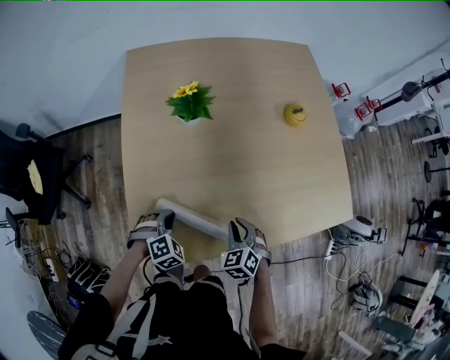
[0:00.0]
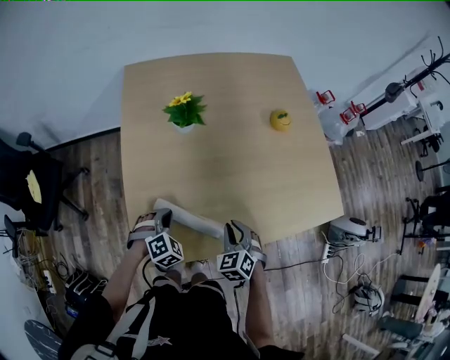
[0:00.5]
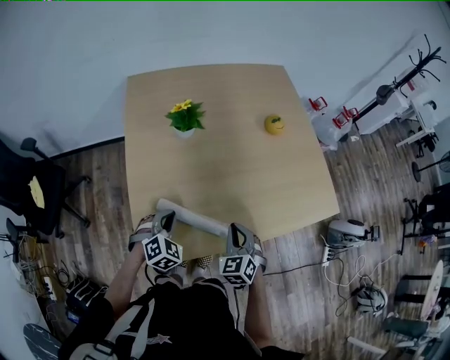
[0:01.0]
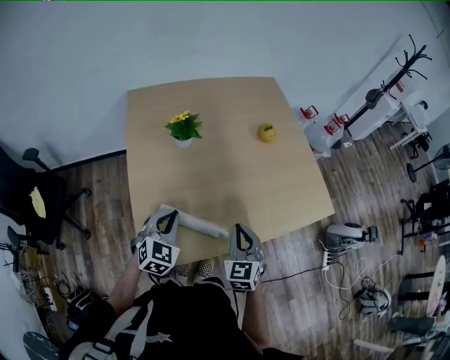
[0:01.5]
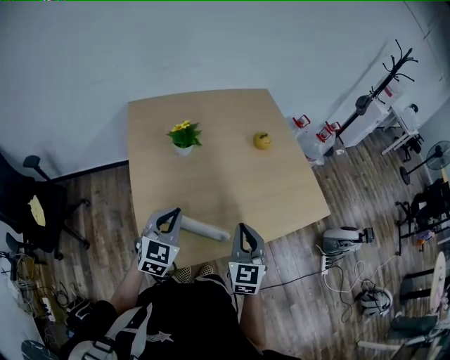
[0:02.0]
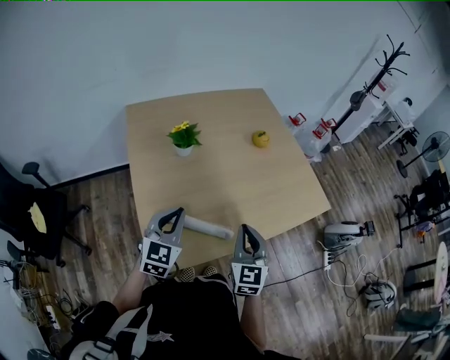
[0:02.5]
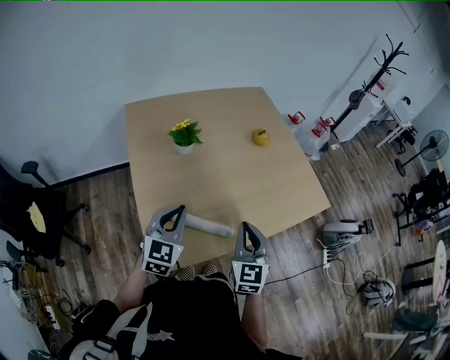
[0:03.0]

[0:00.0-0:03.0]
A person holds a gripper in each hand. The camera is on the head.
0:00.0 to 0:01.5: The right gripper is displaced upward by approximately 15 cm, and rotates some 30 degrees.
0:01.5 to 0:03.0: The right gripper shifts approximately 10 cm upward.

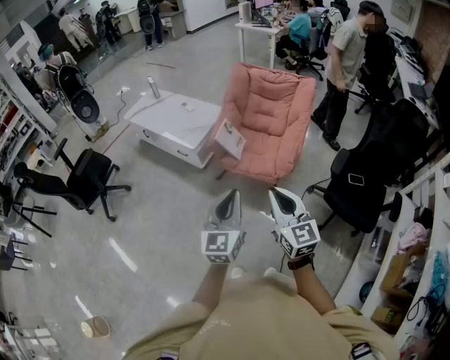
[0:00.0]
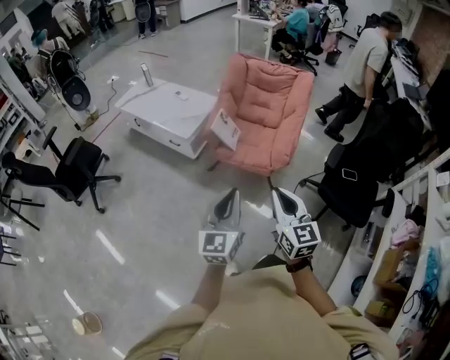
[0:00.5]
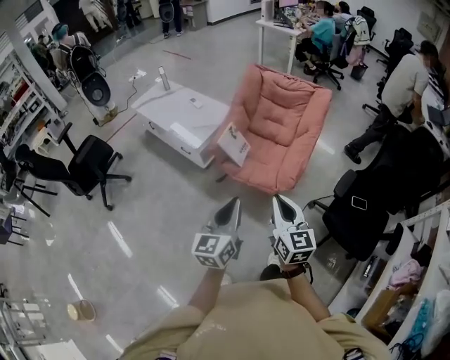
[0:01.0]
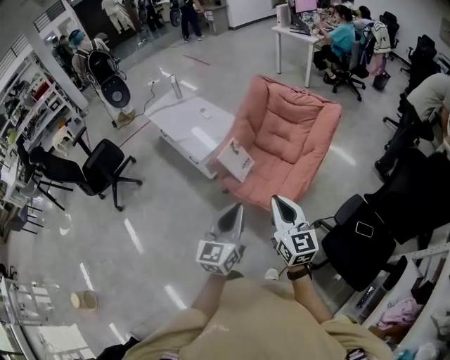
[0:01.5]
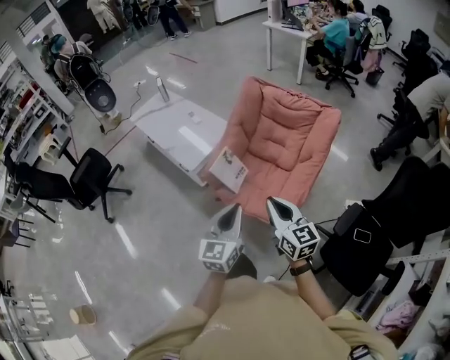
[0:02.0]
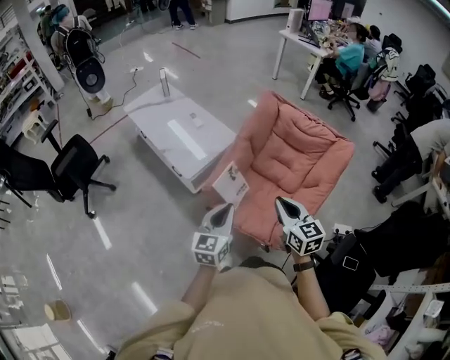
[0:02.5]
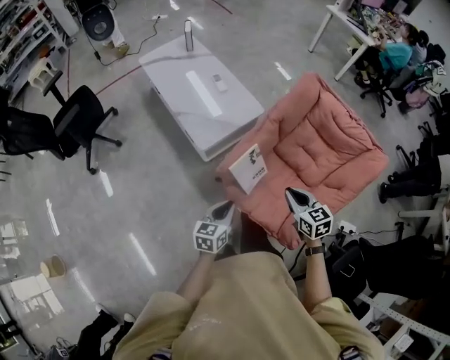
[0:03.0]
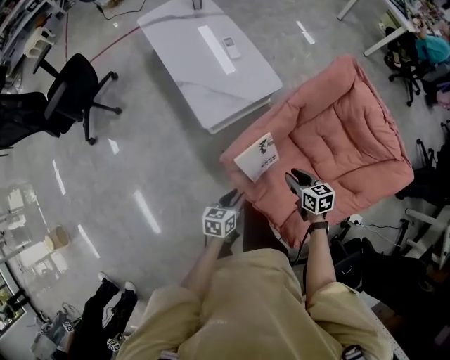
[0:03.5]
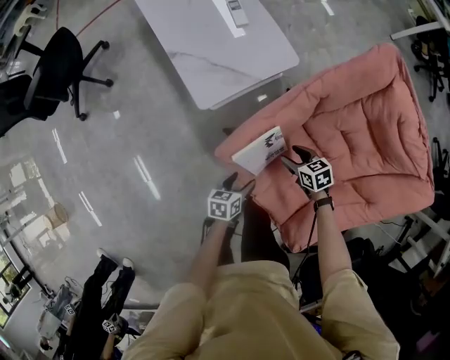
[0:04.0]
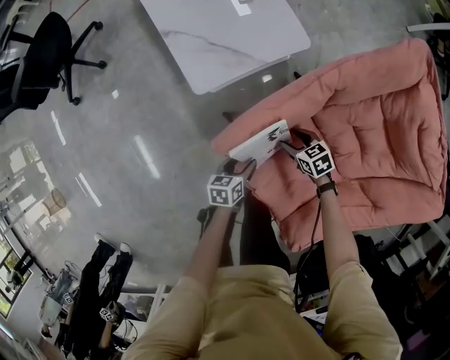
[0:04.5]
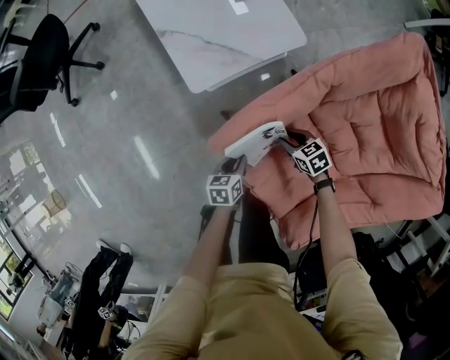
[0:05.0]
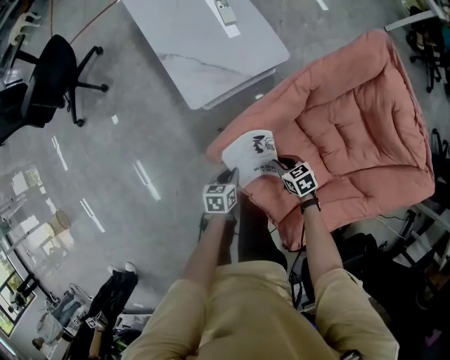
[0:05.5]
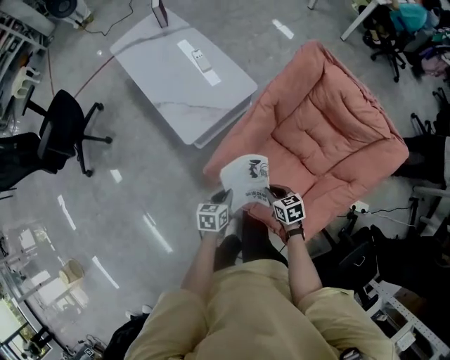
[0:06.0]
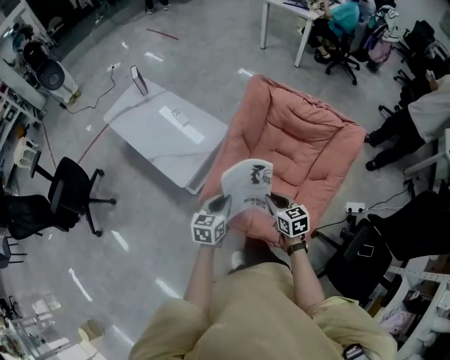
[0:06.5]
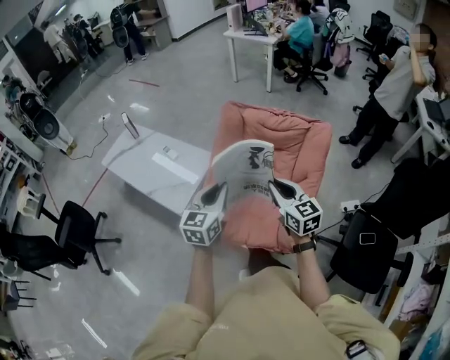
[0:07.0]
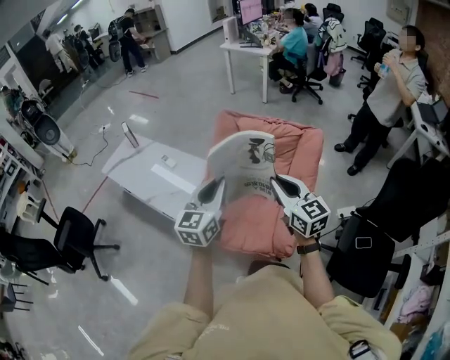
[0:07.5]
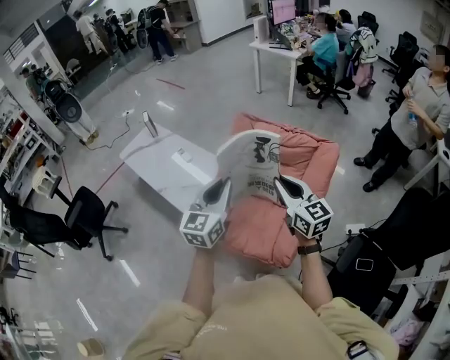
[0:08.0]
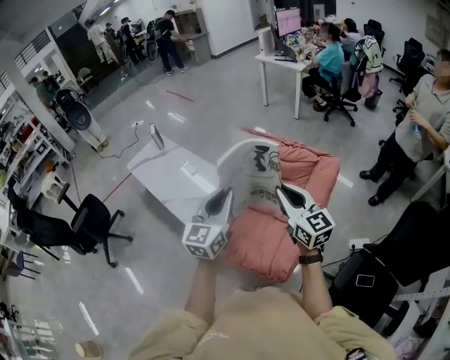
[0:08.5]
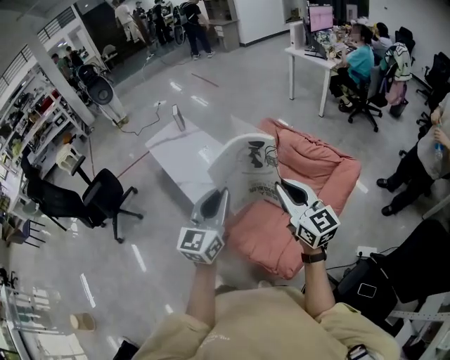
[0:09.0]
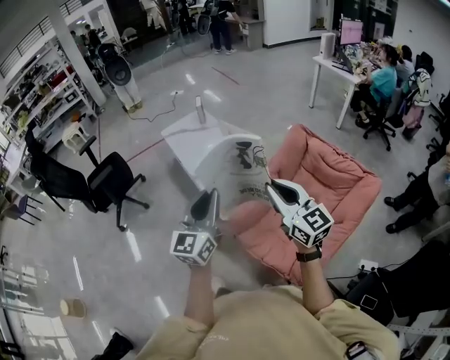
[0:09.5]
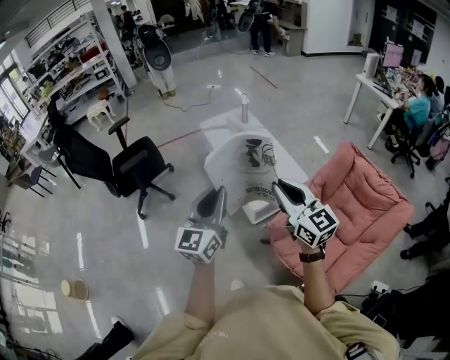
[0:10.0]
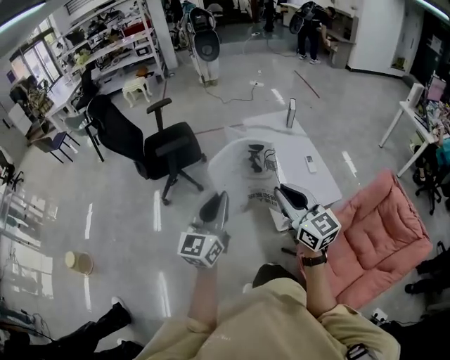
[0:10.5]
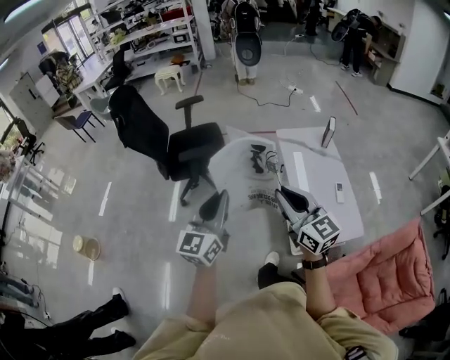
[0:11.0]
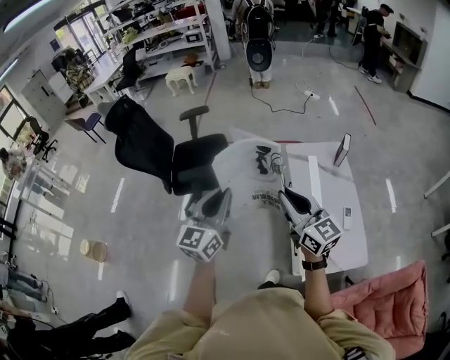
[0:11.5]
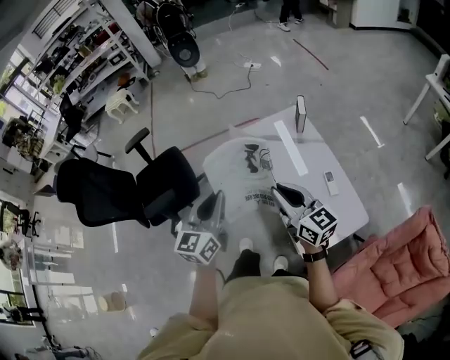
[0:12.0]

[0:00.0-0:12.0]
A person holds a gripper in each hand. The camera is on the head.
0:00.0 to 0:02.0: The two grippers go approximately 35 cm forward and to the right. The right gripper turns by about 20 degrees.
0:02.0 to 0:04.0: The two grippers go roughly 60 cm downward and forward. The right gripper points its fingers approximately 40 degrees further downward, and opens its fingers. The left gripper angles its fingers downward, by some 40 degrees, and opens.
0:04.0 to 0:06.0: The left gripper is displaced upward by about 10 cm, and closes up, while the right gripper travels backward and upward by about 15 cm, and closes its fingers.
0:06.0 to 0:08.0: Both grippers travel together upward, some 50 cm. The left gripper tips its fingers upward by some 40 degrees. The right gripper tilts its fingers some 50 degrees upward.
0:08.0 to 0:10.0: The pair of grippers is taken some 40 cm. The left gripper changes its angle by approximately 30 degrees, while the right gripper rotates approximately 30 degrees.
0:10.0 to 0:12.0: The two grippers travel together, forward, about 60 cm.

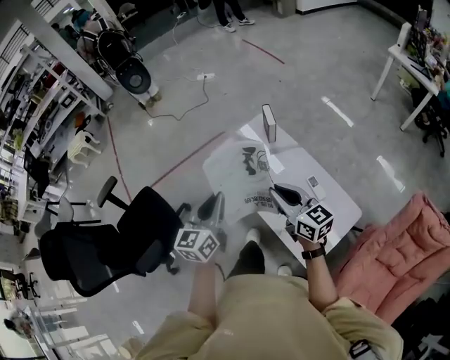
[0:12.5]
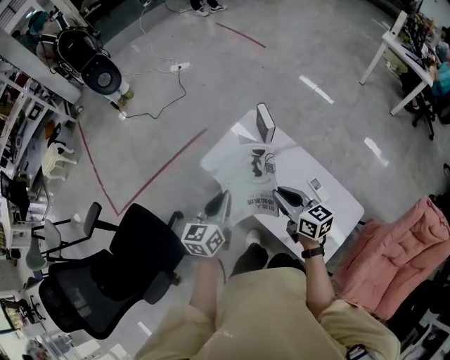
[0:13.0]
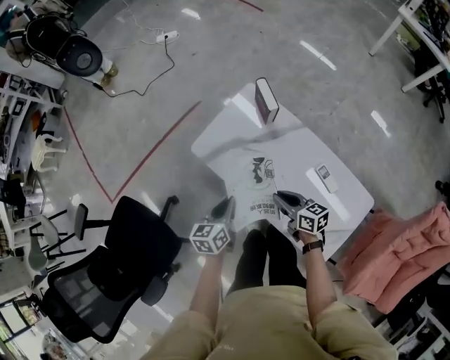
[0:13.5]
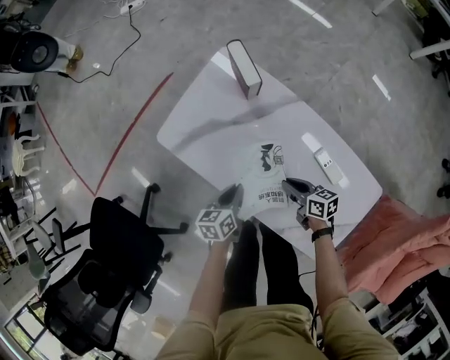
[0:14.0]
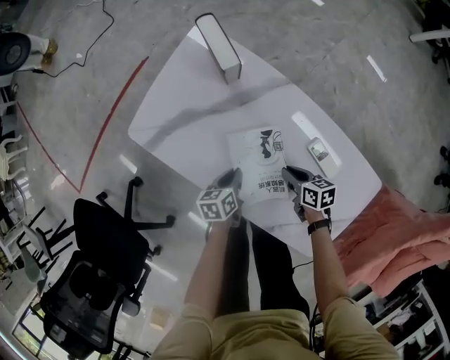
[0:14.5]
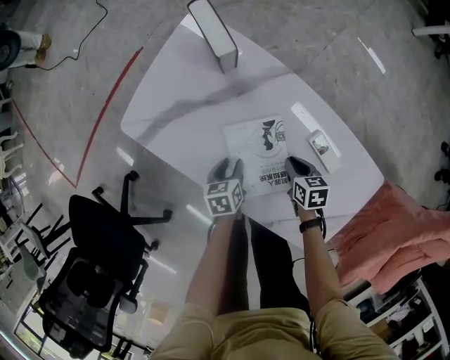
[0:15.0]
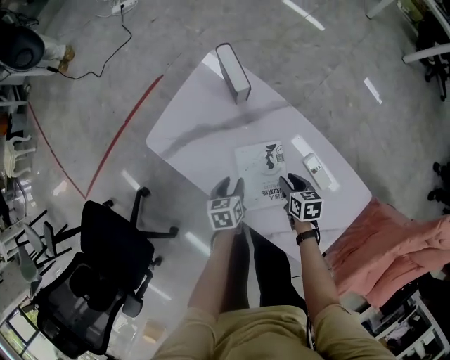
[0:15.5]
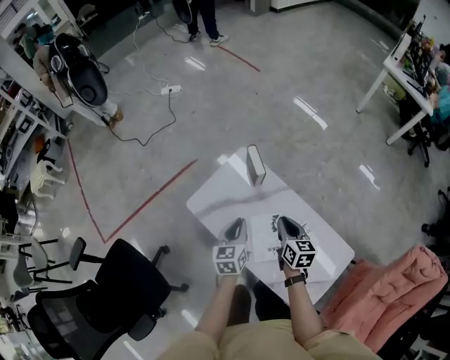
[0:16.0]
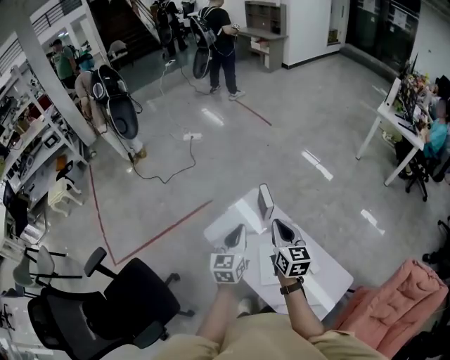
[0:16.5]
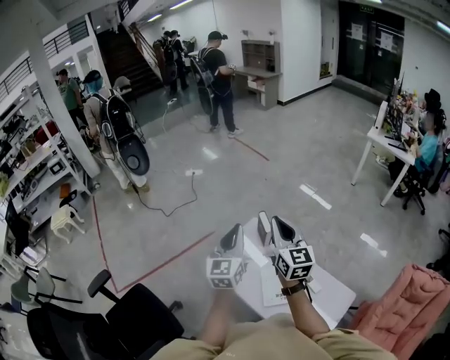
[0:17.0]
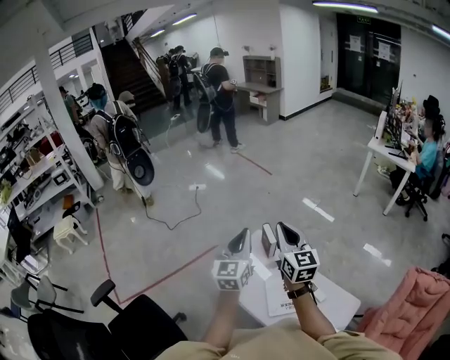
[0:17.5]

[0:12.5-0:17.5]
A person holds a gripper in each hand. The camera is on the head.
0:12.5 to 0:15.0: The two grippers go approximately 60 cm downward. The left gripper tilts its fingers approximately 50 degrees downward, and opens up. Meanwhile the right gripper angles its fingers downward, by about 50 degrees.
0:15.0 to 0:17.5: Both grippers move upward, roughly 80 cm. The right gripper tilts its fingers some 60 degrees upward, and opens and closes again. Meanwhile the left gripper points its fingers roughly 60 degrees further upward, and closes its fingers.

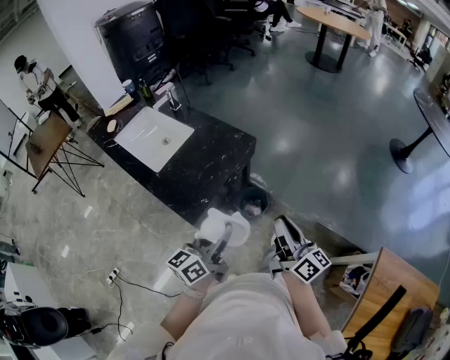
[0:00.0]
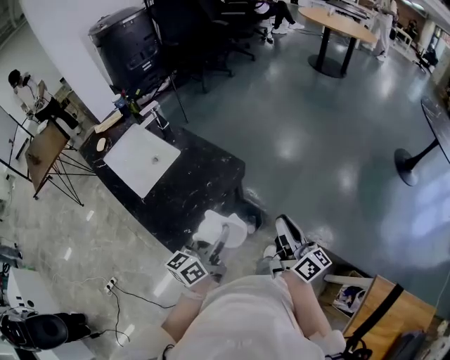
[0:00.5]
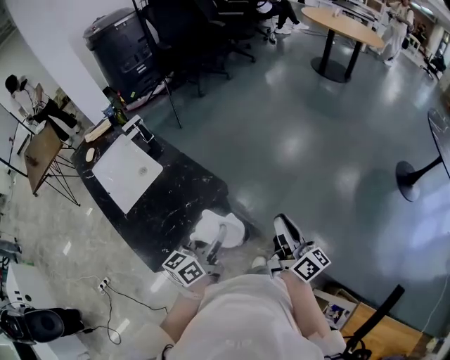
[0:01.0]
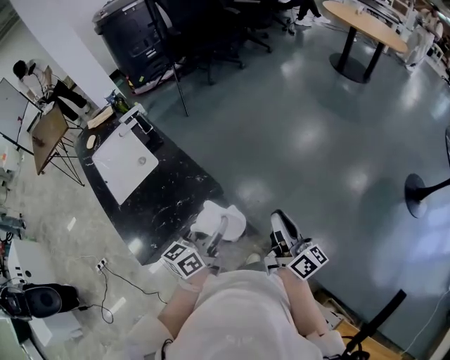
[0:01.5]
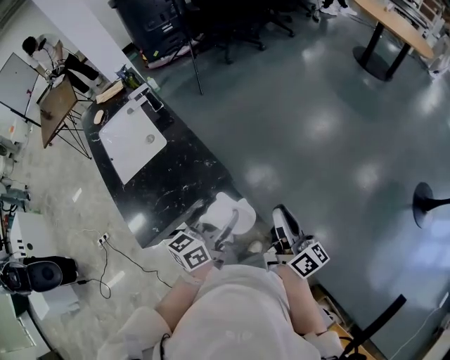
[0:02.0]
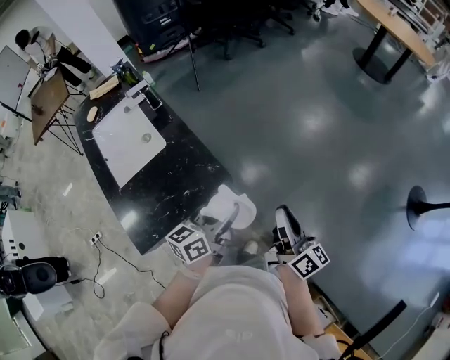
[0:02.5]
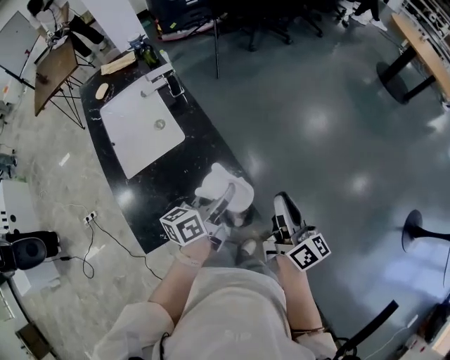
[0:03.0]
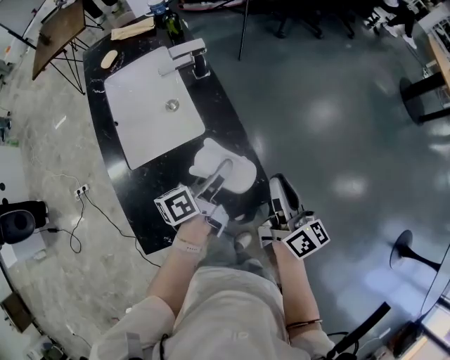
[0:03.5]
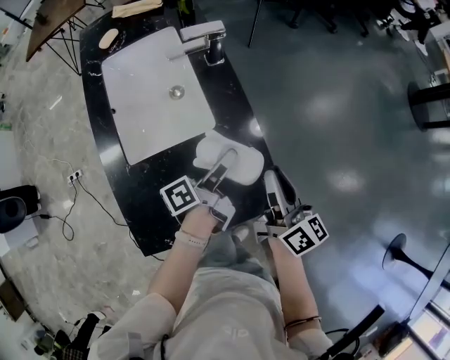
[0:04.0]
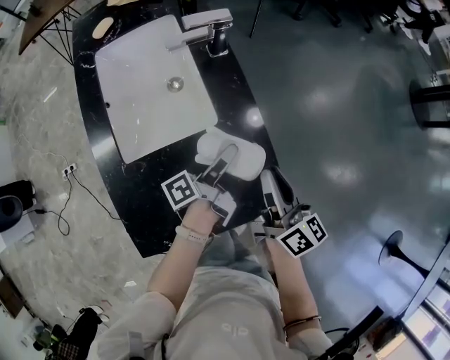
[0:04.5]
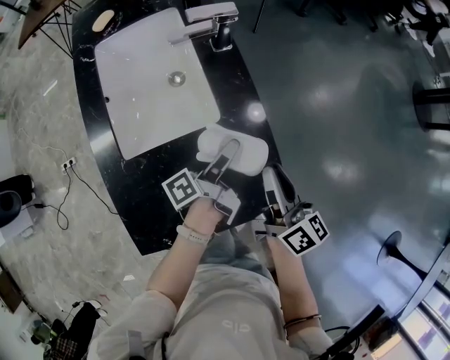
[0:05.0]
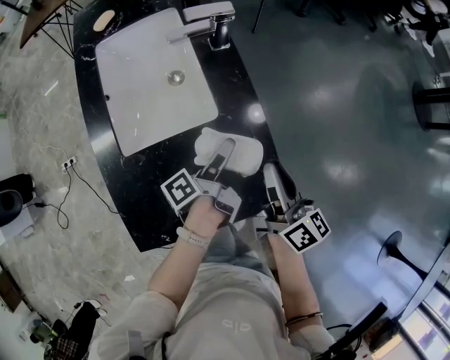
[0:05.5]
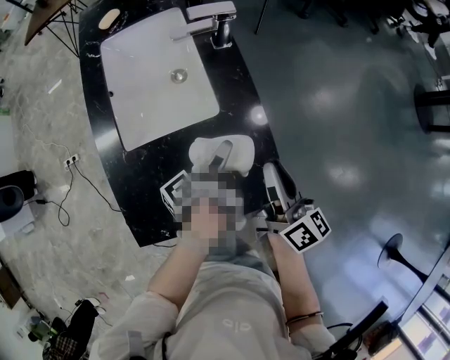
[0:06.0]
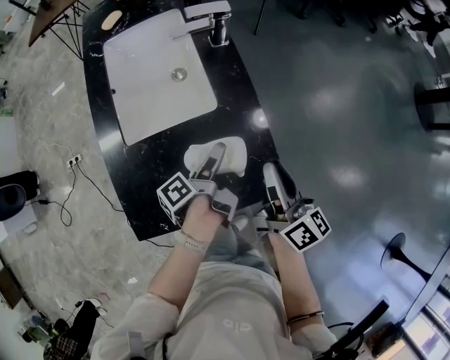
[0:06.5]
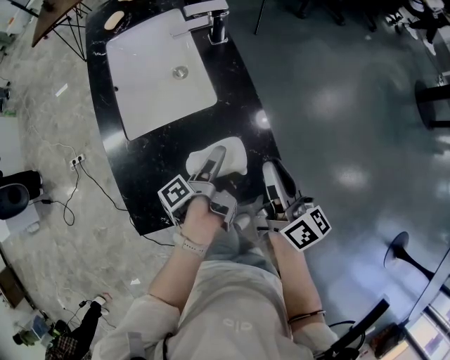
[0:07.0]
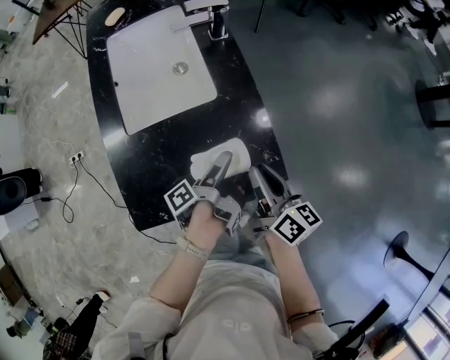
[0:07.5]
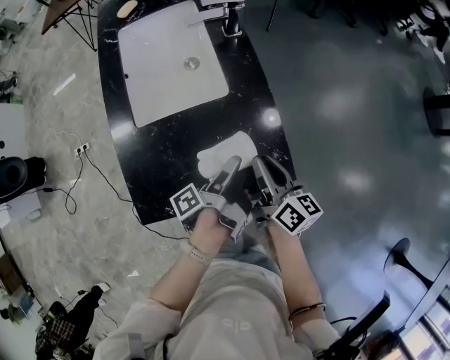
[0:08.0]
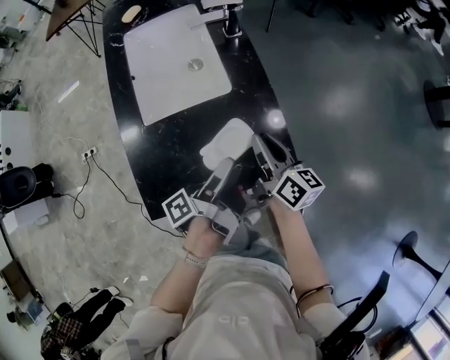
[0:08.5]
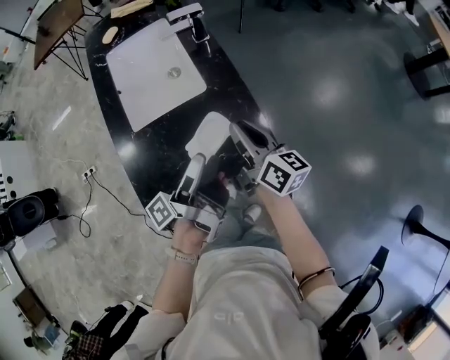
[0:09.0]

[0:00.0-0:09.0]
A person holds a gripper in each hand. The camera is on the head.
0:00.0 to 0:02.0: The right gripper ends up approximately 40 cm from where it was.
0:02.0 to 0:04.5: The right gripper ends up roughly 40 cm from where it was, and rotates roughly 20 degrees.
0:04.5 to 0:07.0: The right gripper ends up roughly 5 cm from where it was.
0:07.0 to 0:09.0: The right gripper moves approximately 10 cm downward and comes back.
